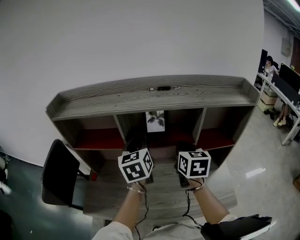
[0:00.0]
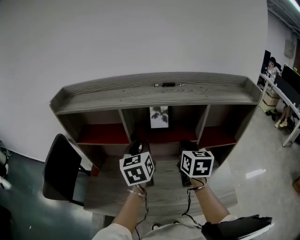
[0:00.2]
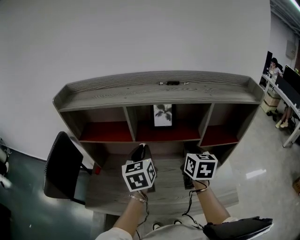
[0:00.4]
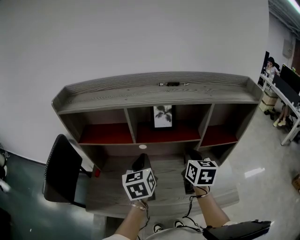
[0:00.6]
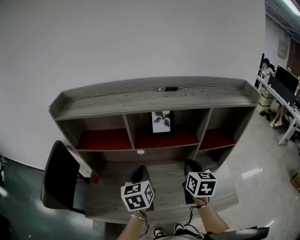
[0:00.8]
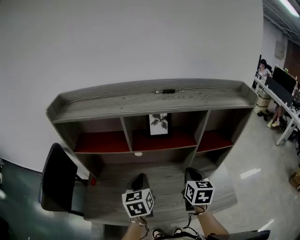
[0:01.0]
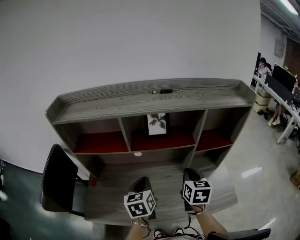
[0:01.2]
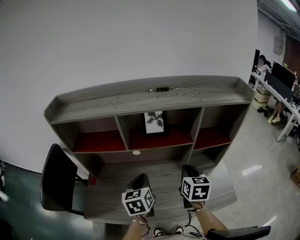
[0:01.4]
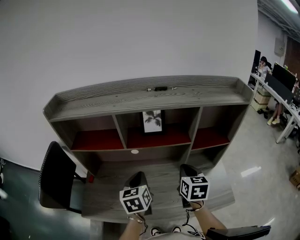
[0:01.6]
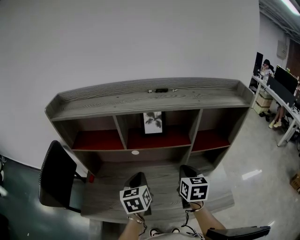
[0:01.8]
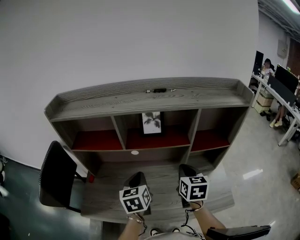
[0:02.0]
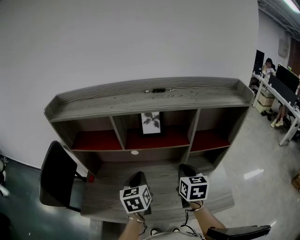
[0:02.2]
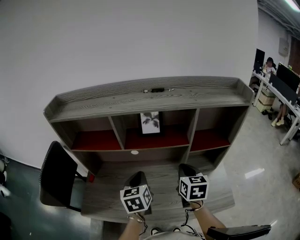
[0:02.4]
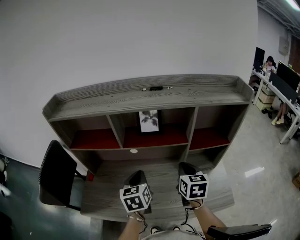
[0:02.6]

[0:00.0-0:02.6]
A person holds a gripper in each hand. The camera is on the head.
0:00.0 to 0:01.2: The left gripper shifts some 15 cm downward and backward, while the right gripper heads backward and downward, covering some 10 cm.
0:01.2 to 0:02.6: The grippers make only small movements.

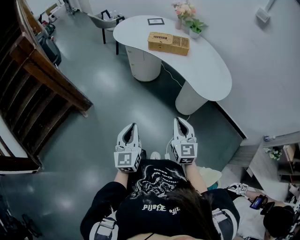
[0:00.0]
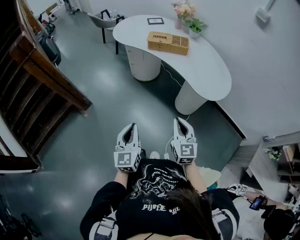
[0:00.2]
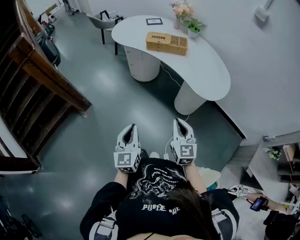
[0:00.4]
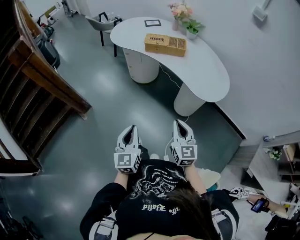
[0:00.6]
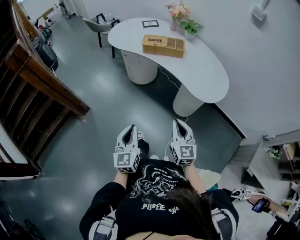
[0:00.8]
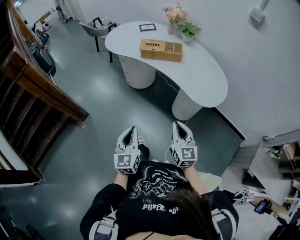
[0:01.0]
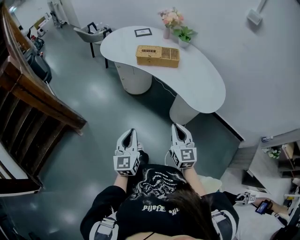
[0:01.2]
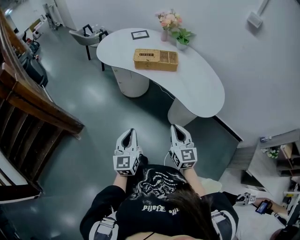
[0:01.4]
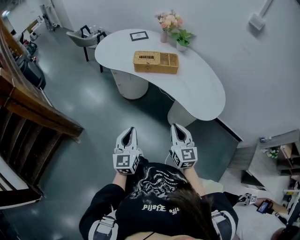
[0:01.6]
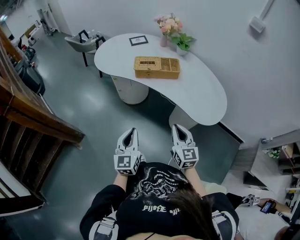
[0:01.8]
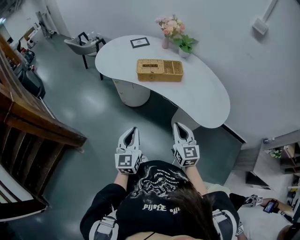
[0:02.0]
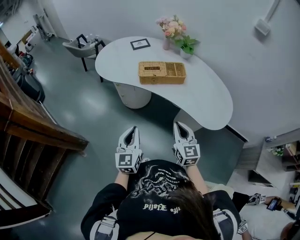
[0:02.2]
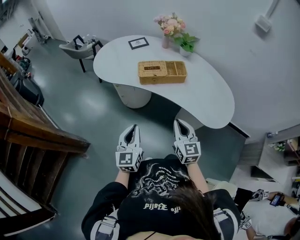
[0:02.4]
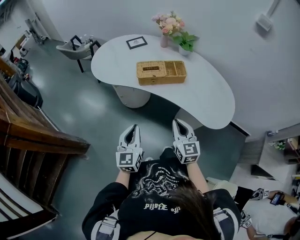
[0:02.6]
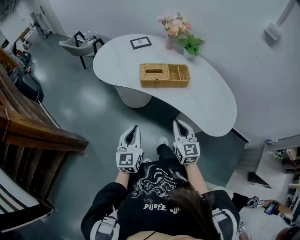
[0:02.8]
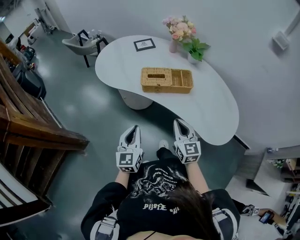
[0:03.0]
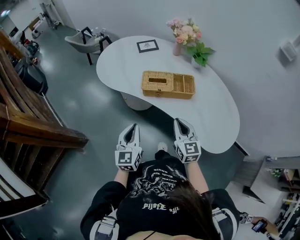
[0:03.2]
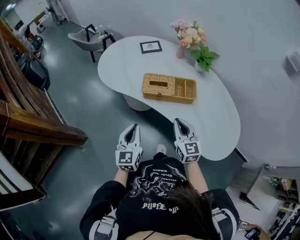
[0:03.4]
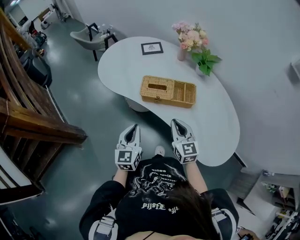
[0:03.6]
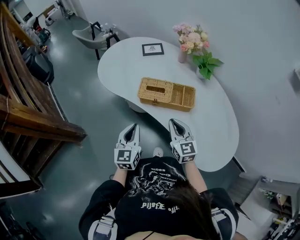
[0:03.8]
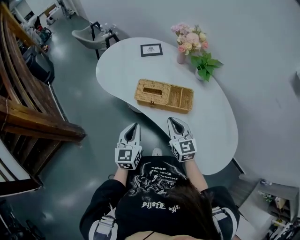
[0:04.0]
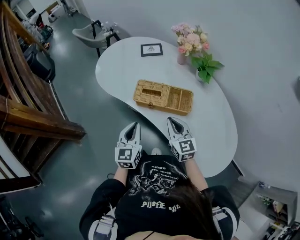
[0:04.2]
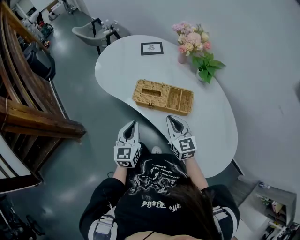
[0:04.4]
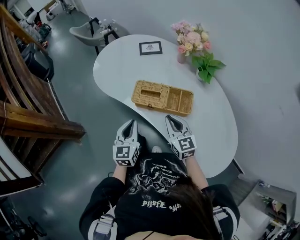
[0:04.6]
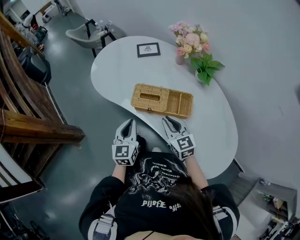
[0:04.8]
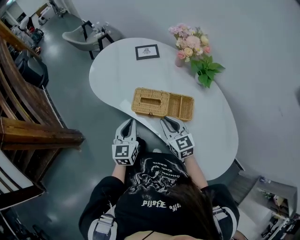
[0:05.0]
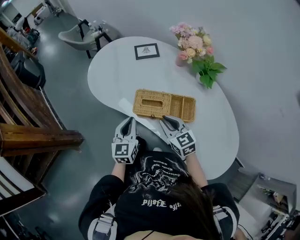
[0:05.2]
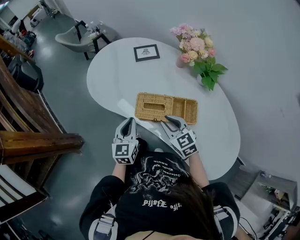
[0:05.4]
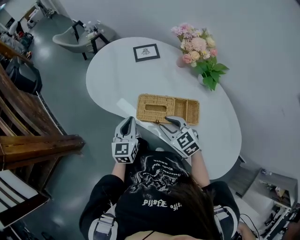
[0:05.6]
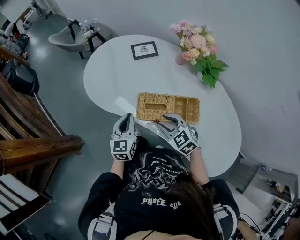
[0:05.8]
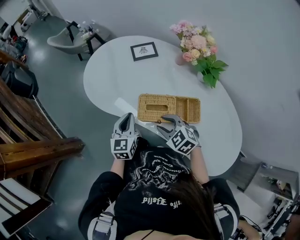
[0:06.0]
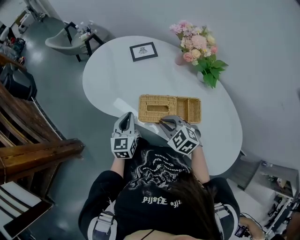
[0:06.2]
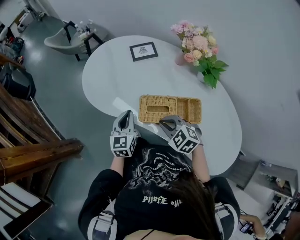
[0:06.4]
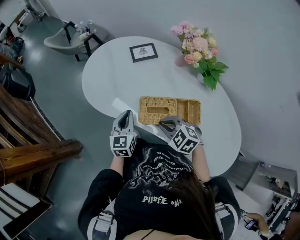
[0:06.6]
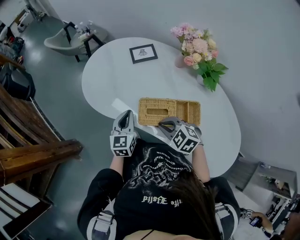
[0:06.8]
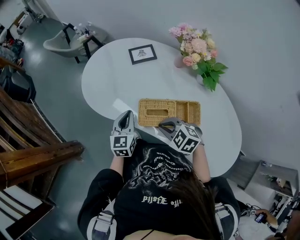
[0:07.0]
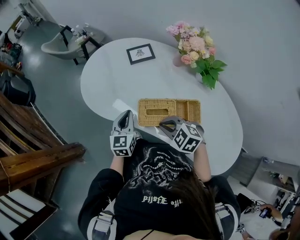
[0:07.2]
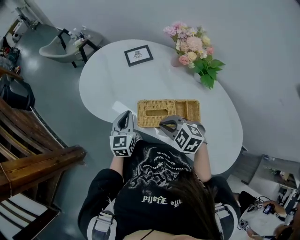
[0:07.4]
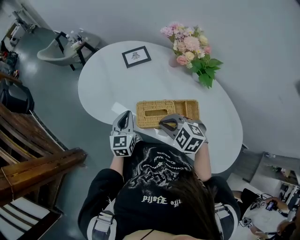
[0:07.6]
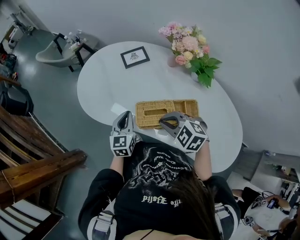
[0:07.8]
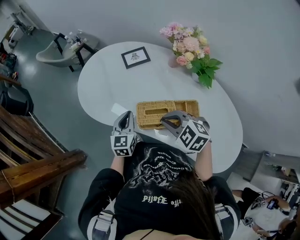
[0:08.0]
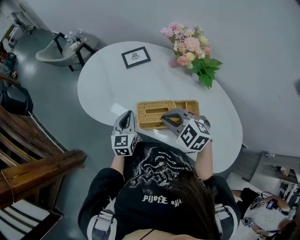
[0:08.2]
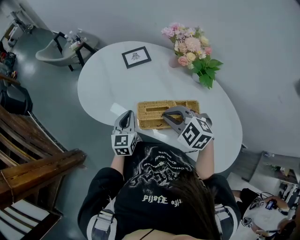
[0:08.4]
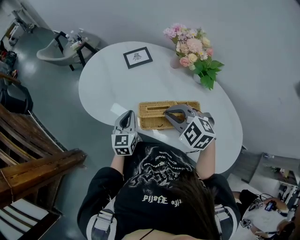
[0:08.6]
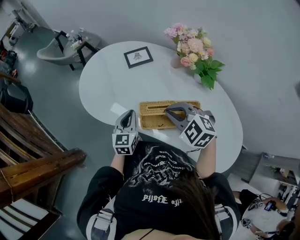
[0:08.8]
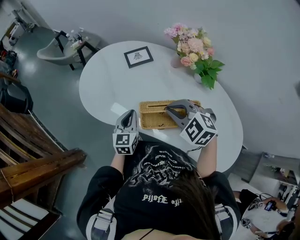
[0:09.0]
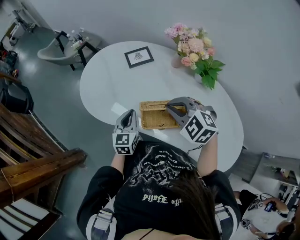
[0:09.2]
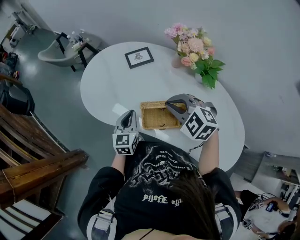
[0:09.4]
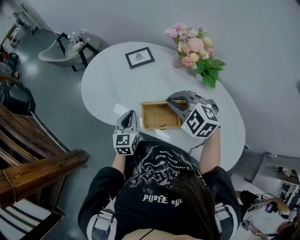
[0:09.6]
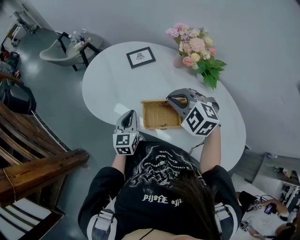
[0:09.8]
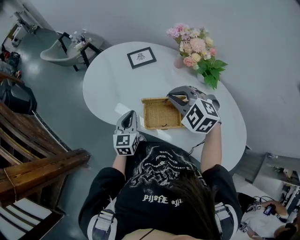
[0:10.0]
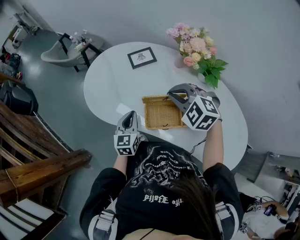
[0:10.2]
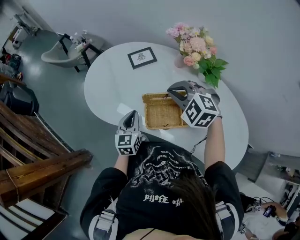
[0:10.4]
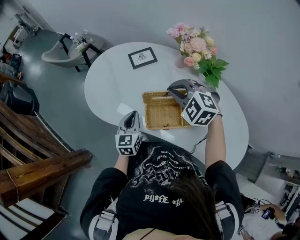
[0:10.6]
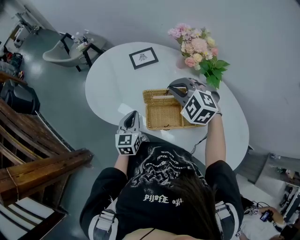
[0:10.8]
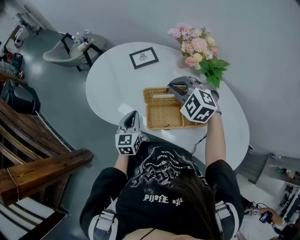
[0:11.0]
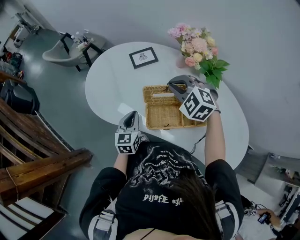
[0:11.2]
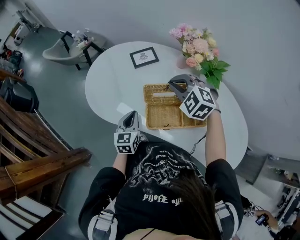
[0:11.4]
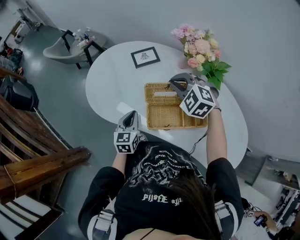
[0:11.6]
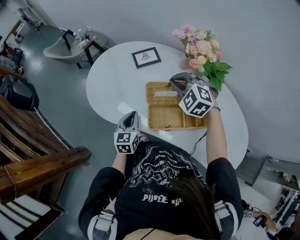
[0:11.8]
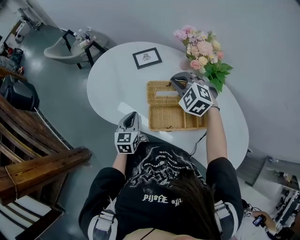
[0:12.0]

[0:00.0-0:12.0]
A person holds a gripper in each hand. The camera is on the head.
0:00.0 to 0:01.6: Both grippers move forward, about 15 cm.
0:01.6 to 0:03.0: The grippers both shift forward by some 20 cm.
0:03.0 to 0:04.4: The left gripper goes about 15 cm forward and to the right; the right gripper goes about 15 cm forward.
0:04.4 to 0:06.0: The right gripper shifts approximately 15 cm forward and to the left, angles its fingers downward, by some 30 degrees, and opens its fingers. Meanwhile the left gripper goes about 15 cm forward.
0:06.0 to 0:07.6: The left gripper is displaced forward by approximately 5 cm. The right gripper changes place by about 5 cm, and closes.
0:07.6 to 0:09.0: The right gripper is displaced upward and forward by some 10 cm.
0:09.0 to 0:10.4: The right gripper goes some 5 cm forward.
0:10.4 to 0:12.0: The right gripper travels forward by about 5 cm.

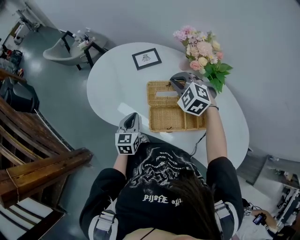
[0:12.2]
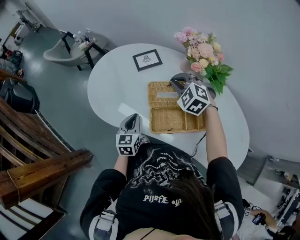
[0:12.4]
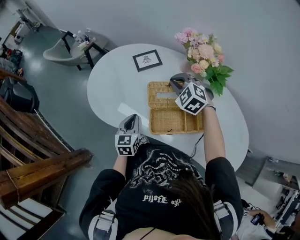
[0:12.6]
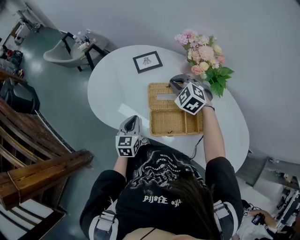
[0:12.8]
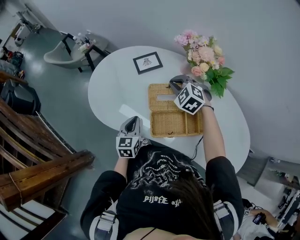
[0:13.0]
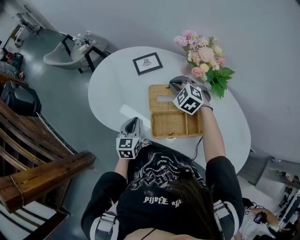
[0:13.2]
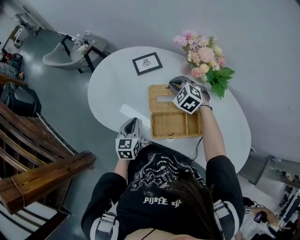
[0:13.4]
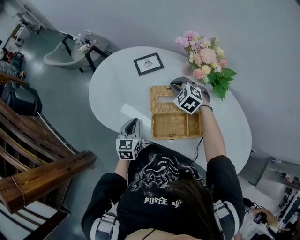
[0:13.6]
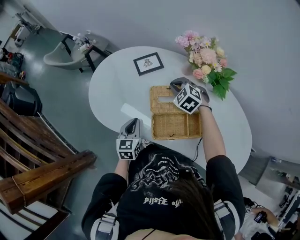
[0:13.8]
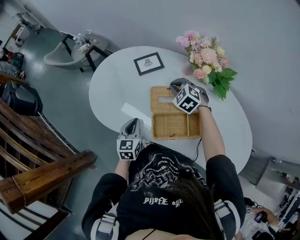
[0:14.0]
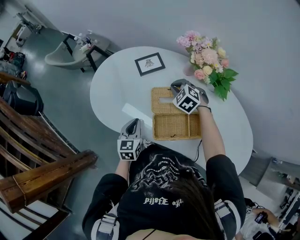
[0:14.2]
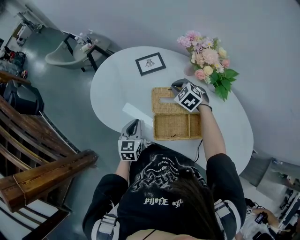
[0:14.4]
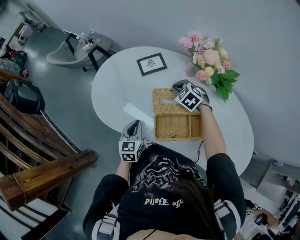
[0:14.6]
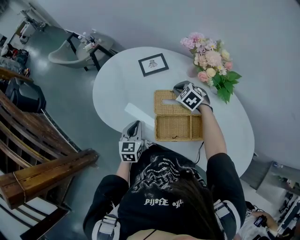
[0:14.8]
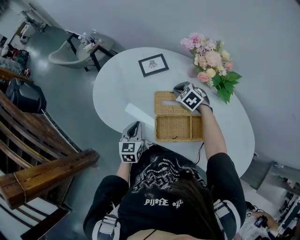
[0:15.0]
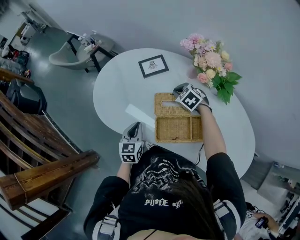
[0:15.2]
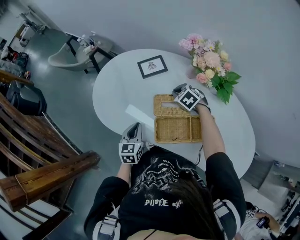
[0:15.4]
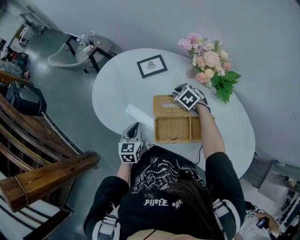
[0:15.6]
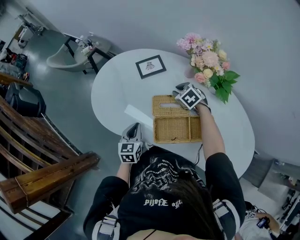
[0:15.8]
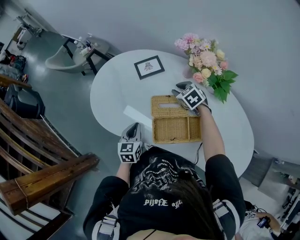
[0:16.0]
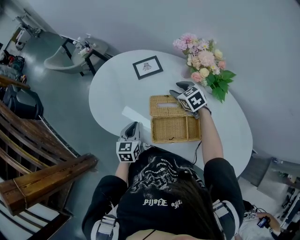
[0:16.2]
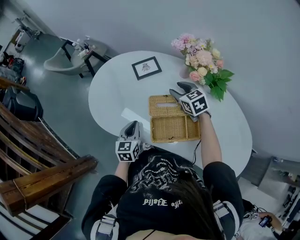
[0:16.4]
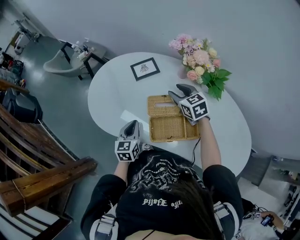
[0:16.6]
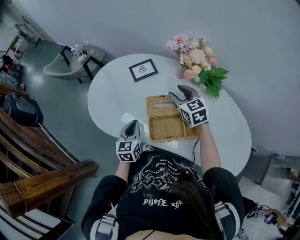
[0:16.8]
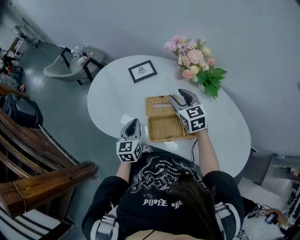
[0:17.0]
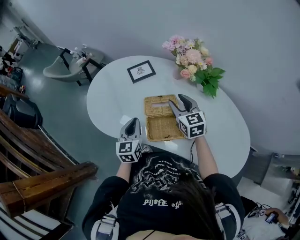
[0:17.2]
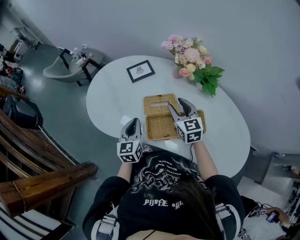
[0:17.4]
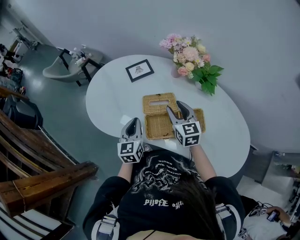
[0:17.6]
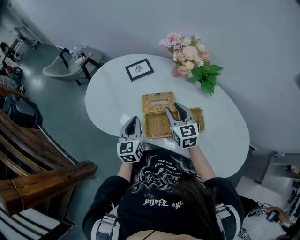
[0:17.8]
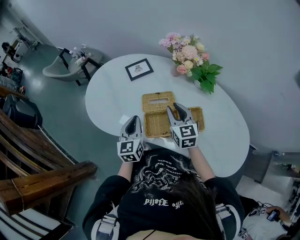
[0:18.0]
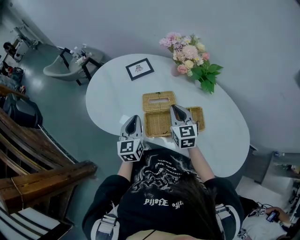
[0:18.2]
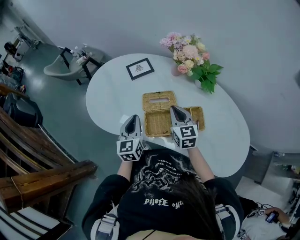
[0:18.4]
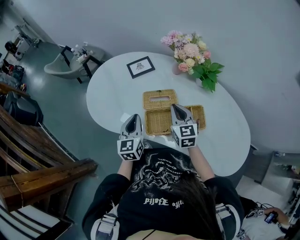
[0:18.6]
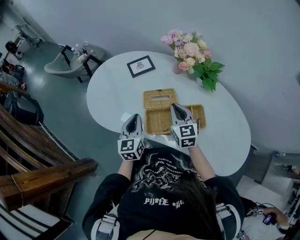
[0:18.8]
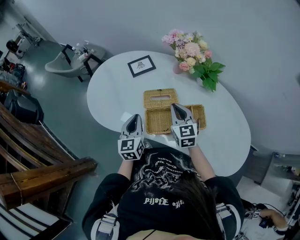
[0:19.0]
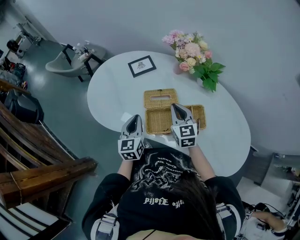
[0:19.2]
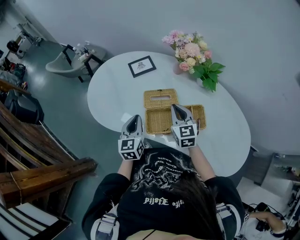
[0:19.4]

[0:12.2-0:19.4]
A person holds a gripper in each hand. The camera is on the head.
0:12.2 to 0:13.6: The right gripper moves downward, approximately 5 cm.
0:13.6 to 0:15.0: The right gripper heads downward, covering some 5 cm.
0:15.0 to 0:16.6: The right gripper travels upward by roughly 10 cm, swivels roughly 30 degrees, and opens its fingers.
0:16.6 to 0:18.0: The left gripper moves upward, about 5 cm, while the right gripper heads backward, covering about 10 cm, and rotates roughly 20 degrees.
0:18.0 to 0:19.4: The right gripper closes its fingers.

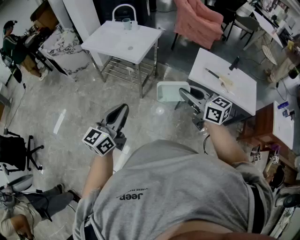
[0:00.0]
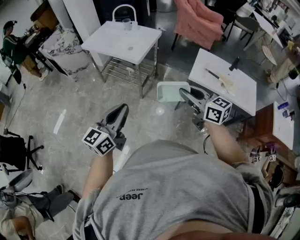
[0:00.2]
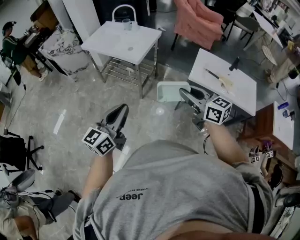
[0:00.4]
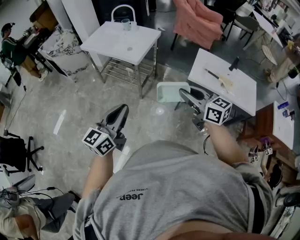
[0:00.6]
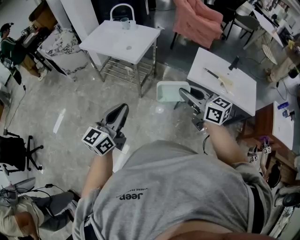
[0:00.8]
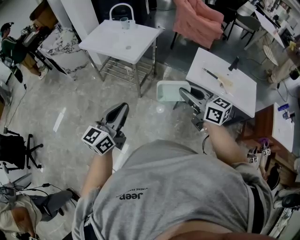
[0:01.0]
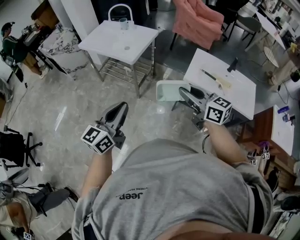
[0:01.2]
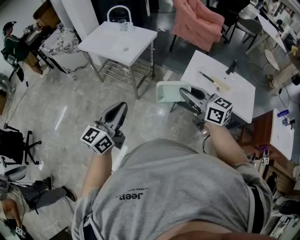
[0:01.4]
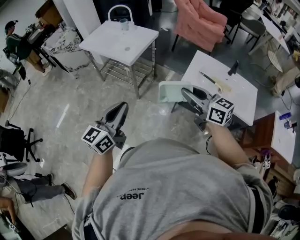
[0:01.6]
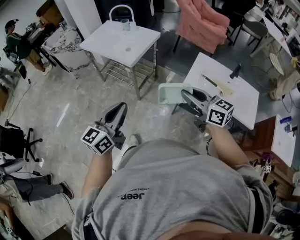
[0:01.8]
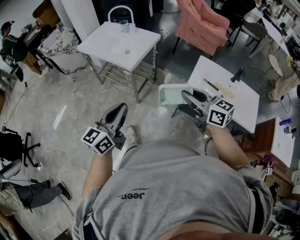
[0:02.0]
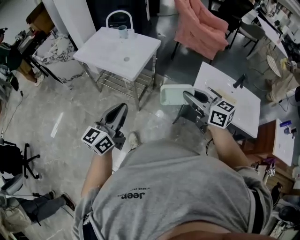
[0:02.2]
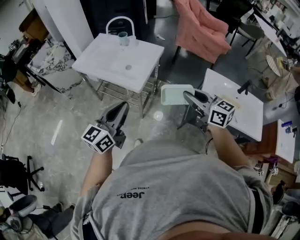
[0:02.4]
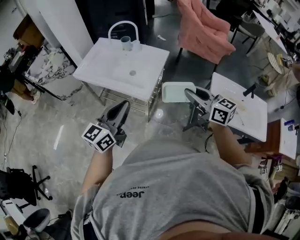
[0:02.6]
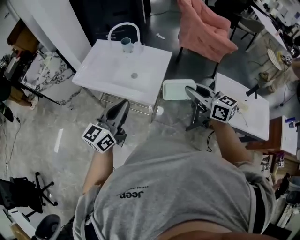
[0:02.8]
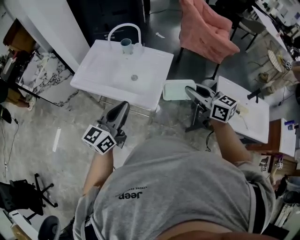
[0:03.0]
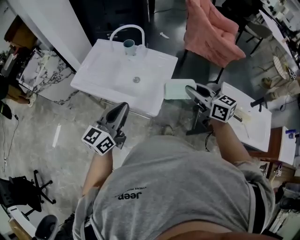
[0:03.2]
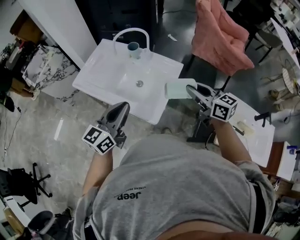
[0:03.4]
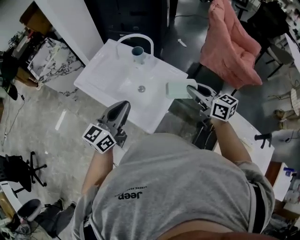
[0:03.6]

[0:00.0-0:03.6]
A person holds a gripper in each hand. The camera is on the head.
0:00.0 to 0:01.8: The two grippers go roughly 10 cm to the right.
0:01.8 to 0:03.6: Both grippers are carried forward, approximately 60 cm.
